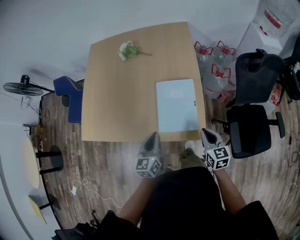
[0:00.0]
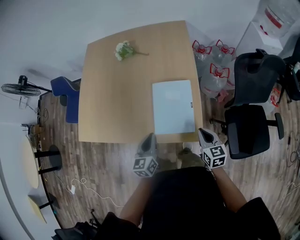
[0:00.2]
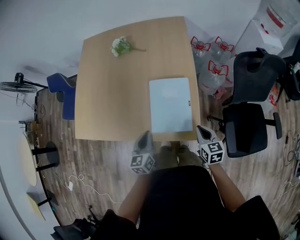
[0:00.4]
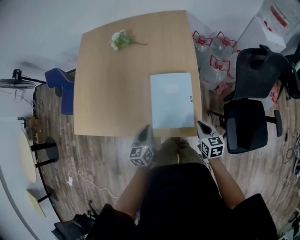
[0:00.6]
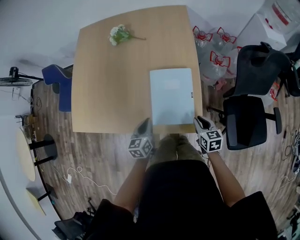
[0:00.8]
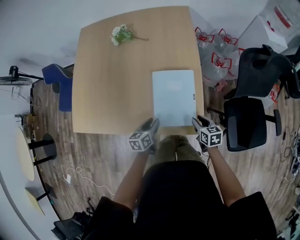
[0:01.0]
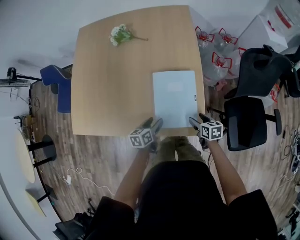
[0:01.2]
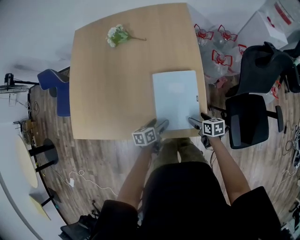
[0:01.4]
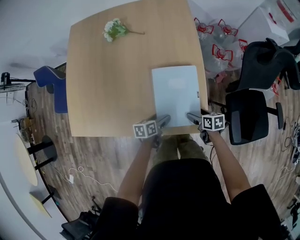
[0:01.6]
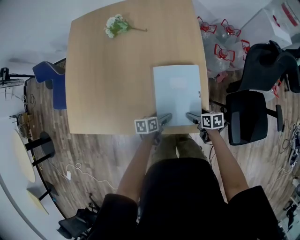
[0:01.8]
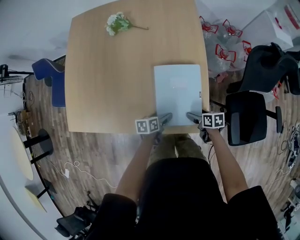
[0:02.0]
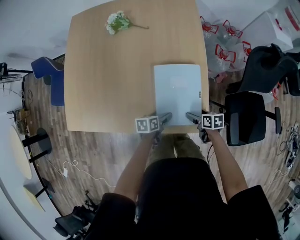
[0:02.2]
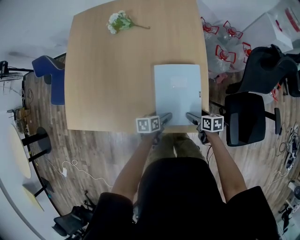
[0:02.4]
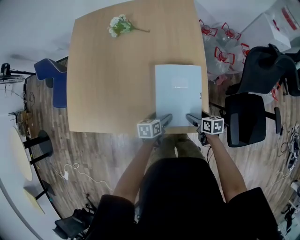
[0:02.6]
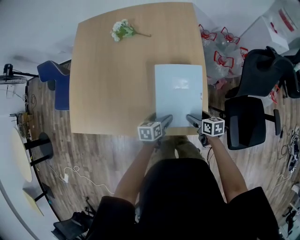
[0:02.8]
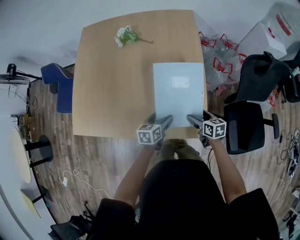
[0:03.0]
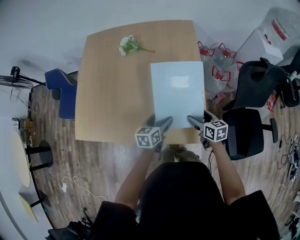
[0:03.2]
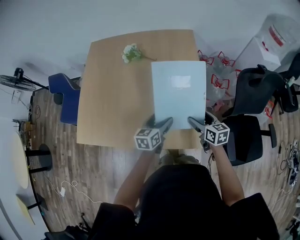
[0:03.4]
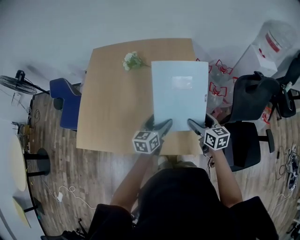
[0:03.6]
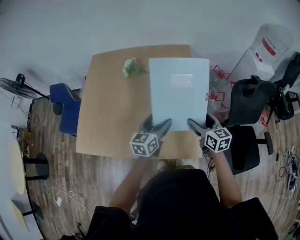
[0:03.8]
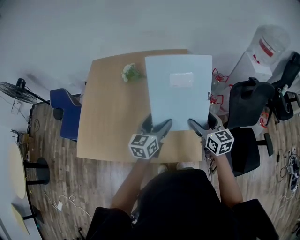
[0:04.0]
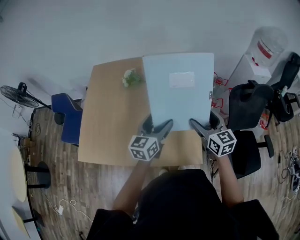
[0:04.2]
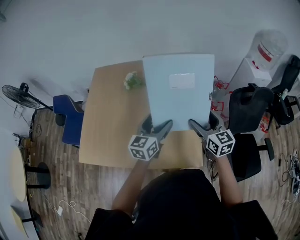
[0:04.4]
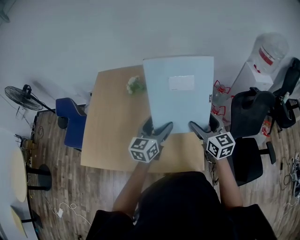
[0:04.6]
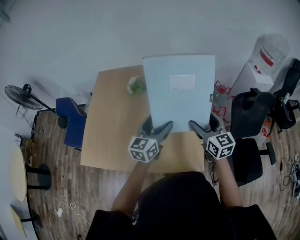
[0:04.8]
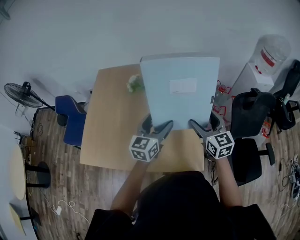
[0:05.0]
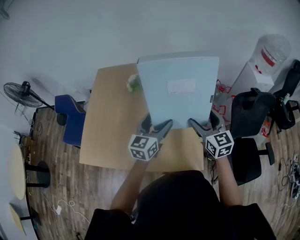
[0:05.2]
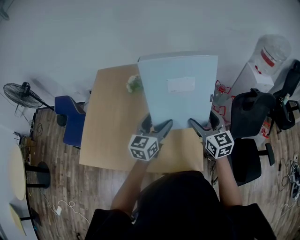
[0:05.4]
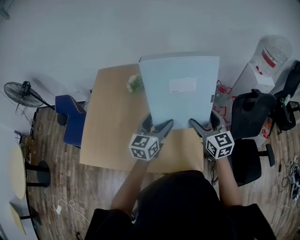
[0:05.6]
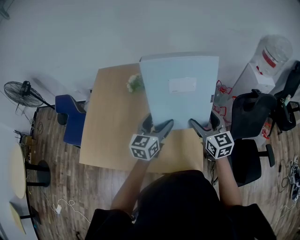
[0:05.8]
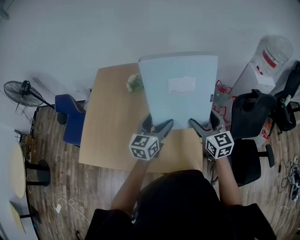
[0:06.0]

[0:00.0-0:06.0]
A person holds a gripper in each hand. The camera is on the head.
0.0 to 1.6 s: The right gripper goes roughly 20 cm downward and forward, swivels approximately 40 degrees, and opens. The left gripper moves downward, roughly 25 cm, turns by approximately 50 degrees, and opens its fingers.
1.6 to 3.0 s: The grippers both shift upward by some 10 cm.
3.0 to 4.4 s: Both grippers move upward, some 30 cm. The left gripper swivels approximately 40 degrees. The right gripper changes its angle by about 40 degrees.
4.4 to 6.0 s: The grippers make only small movements.

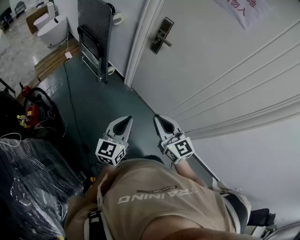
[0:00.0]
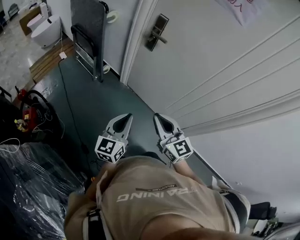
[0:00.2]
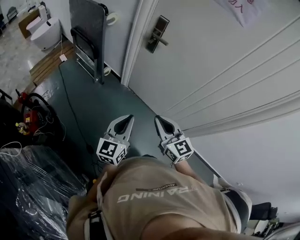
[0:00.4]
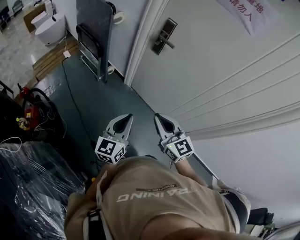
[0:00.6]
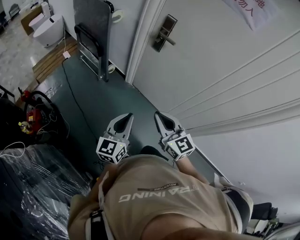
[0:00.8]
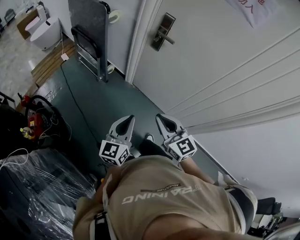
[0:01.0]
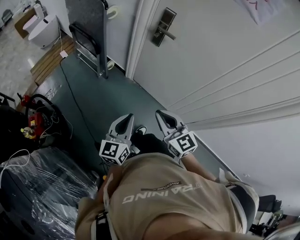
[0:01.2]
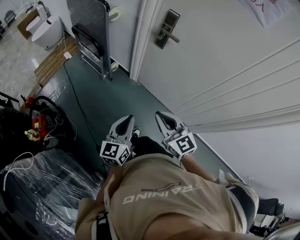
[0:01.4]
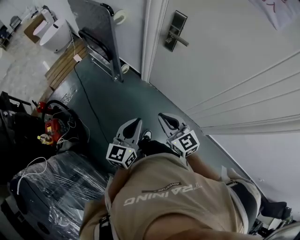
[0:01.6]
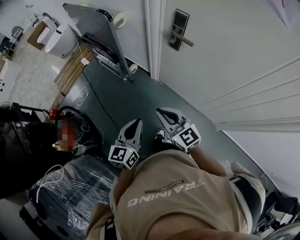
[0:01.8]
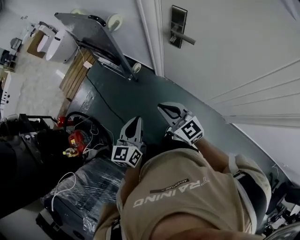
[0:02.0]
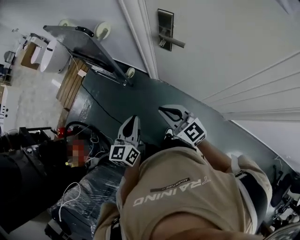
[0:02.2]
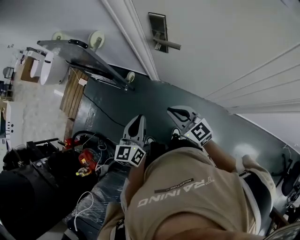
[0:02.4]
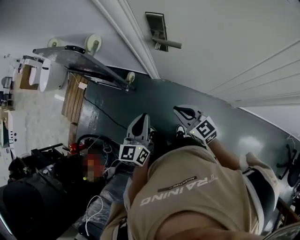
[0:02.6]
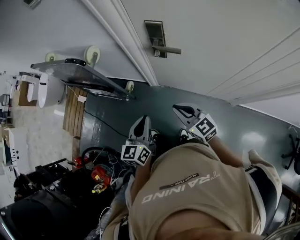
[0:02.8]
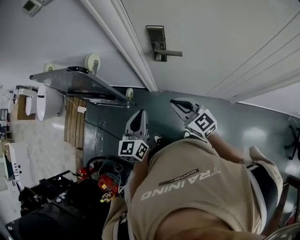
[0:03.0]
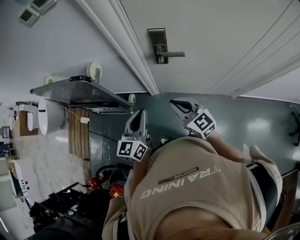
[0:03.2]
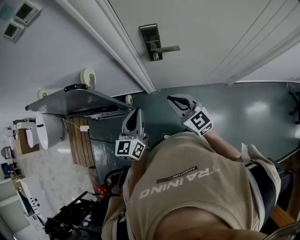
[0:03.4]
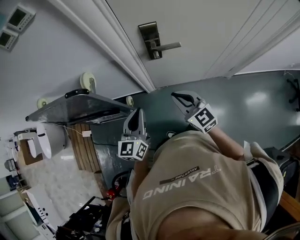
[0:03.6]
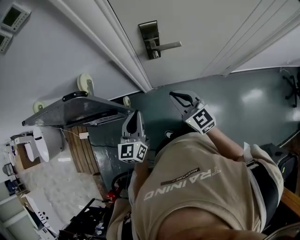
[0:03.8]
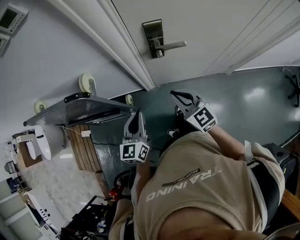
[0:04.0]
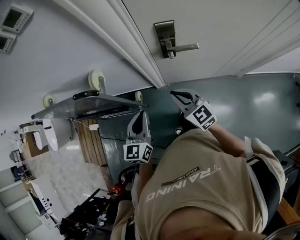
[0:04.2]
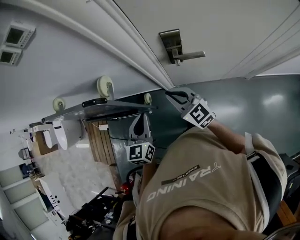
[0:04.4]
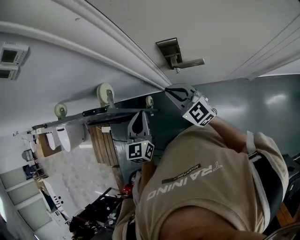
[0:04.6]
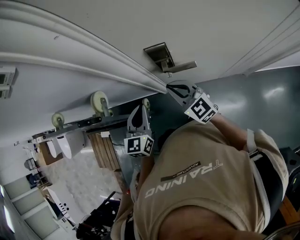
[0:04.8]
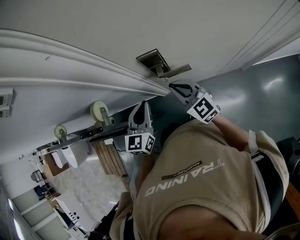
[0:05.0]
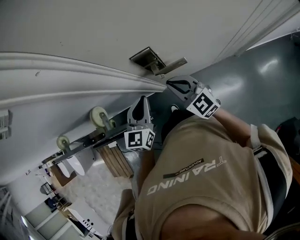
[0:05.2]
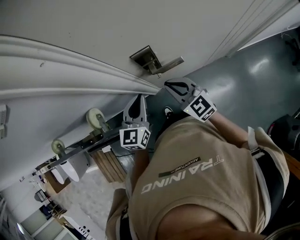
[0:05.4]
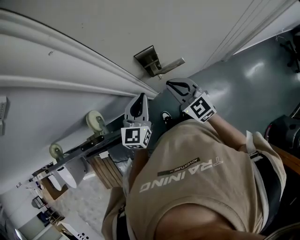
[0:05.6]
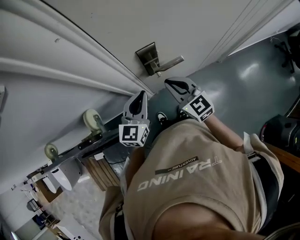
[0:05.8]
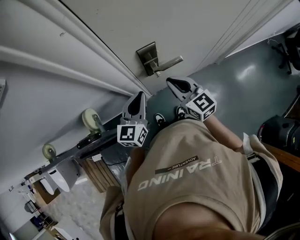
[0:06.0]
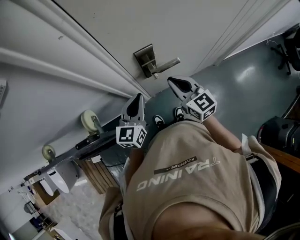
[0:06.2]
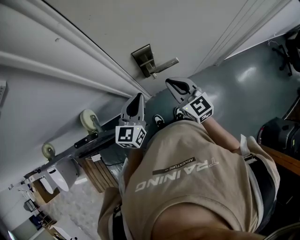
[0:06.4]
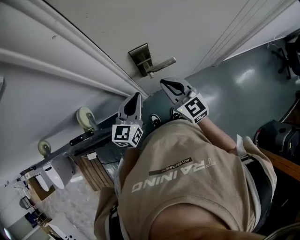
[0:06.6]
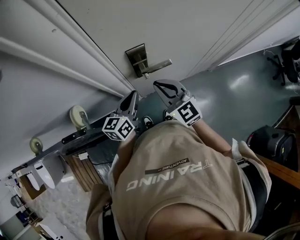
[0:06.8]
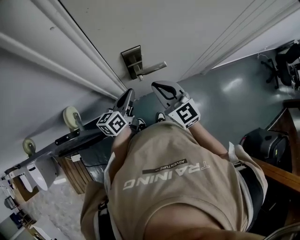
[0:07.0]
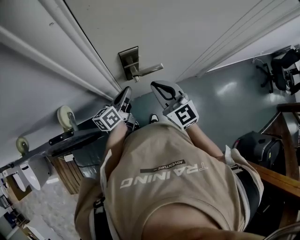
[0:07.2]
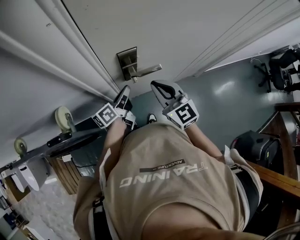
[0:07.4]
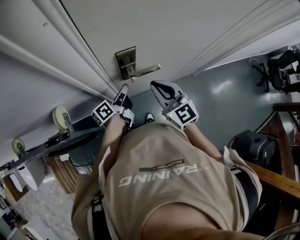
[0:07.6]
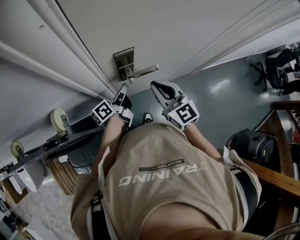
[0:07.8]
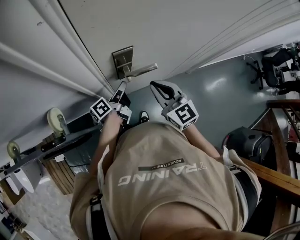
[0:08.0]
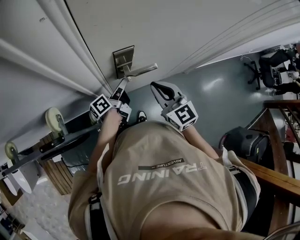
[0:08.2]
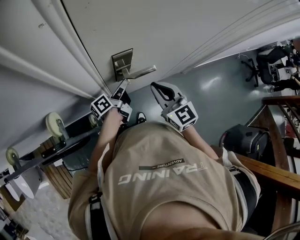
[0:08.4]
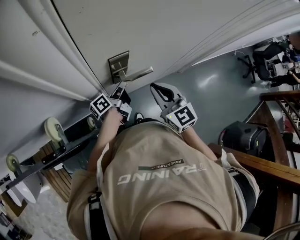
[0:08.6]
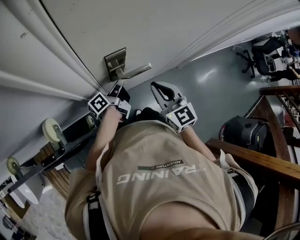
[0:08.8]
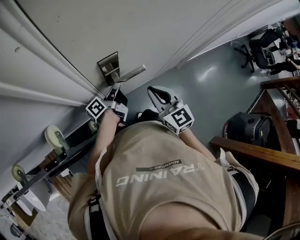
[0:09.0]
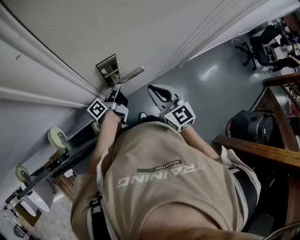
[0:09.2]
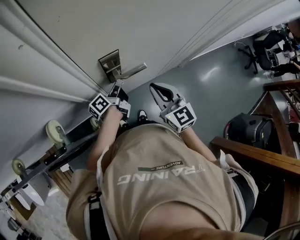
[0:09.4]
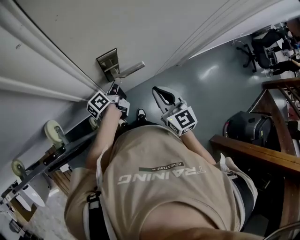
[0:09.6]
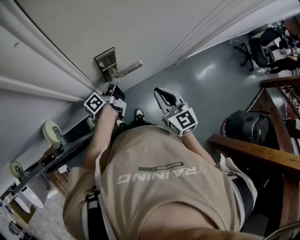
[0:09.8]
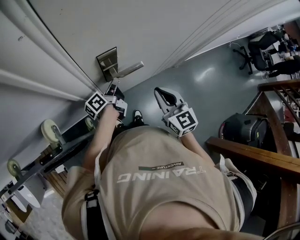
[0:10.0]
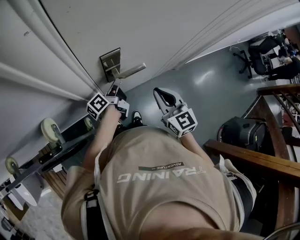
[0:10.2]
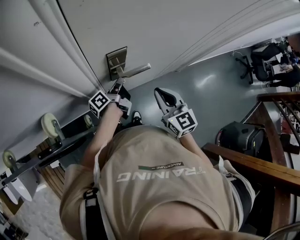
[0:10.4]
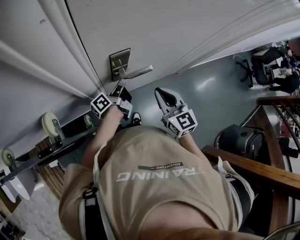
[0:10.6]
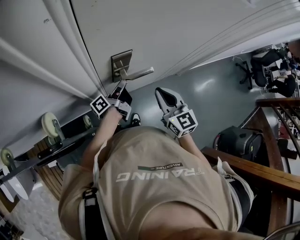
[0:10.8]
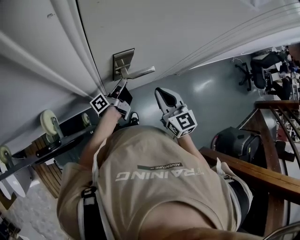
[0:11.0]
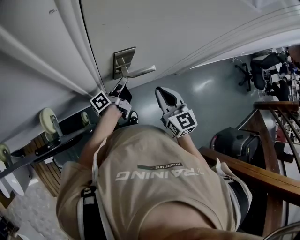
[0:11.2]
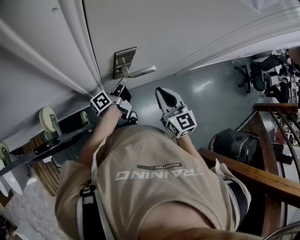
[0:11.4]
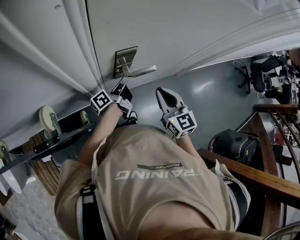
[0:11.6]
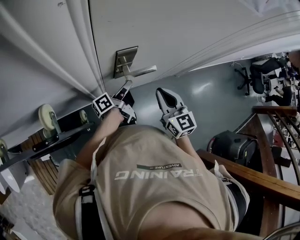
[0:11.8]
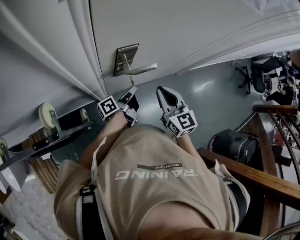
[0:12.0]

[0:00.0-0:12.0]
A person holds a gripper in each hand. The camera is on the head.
0.0 to 1.6 s: The left gripper is displaced forward and to the left by approximately 15 cm, while the right gripper heads forward, to the left and downward, covering about 15 cm.
1.6 to 3.0 s: Both grippers travel together forward, some 25 cm.
3.0 to 4.4 s: Both grippers travel together forward and to the left, some 15 cm.
4.4 to 6.0 s: The left gripper moves some 15 cm, and swivels approximately 30 degrees. Meanwhile the right gripper changes place by about 10 cm, and swivels about 30 degrees.
6.0 to 7.6 s: The left gripper moves downward and forward, approximately 10 cm, and rolls counterclockwise, seen from behind, by about 60 degrees.
7.6 to 9.0 s: The left gripper shifts by some 5 cm.
9.0 to 10.4 s: The grippers make only small movements.
10.4 to 12.0 s: The left gripper moves backward, roughly 5 cm.

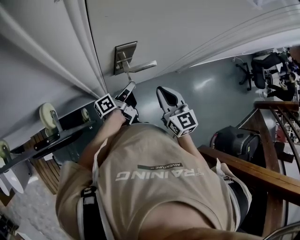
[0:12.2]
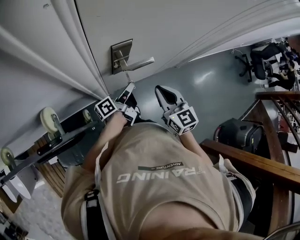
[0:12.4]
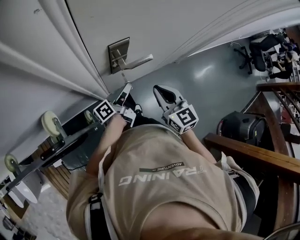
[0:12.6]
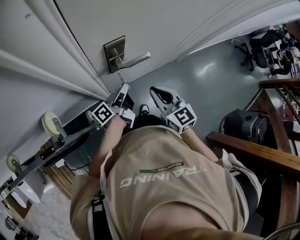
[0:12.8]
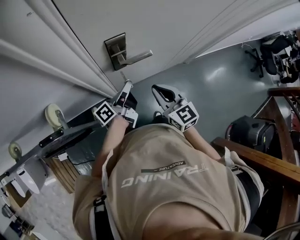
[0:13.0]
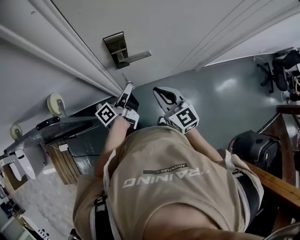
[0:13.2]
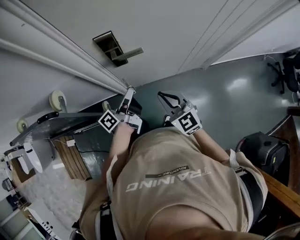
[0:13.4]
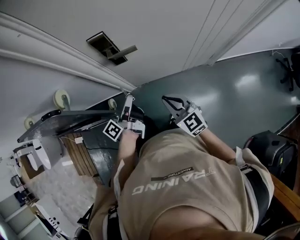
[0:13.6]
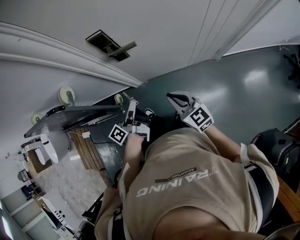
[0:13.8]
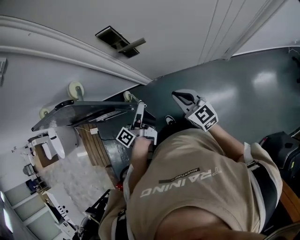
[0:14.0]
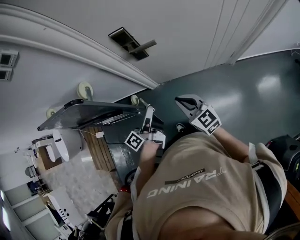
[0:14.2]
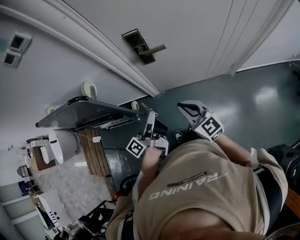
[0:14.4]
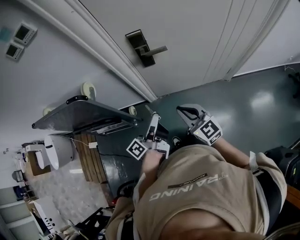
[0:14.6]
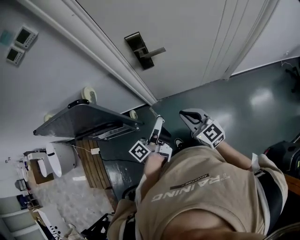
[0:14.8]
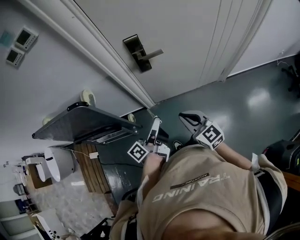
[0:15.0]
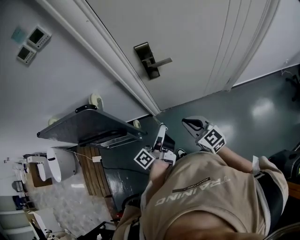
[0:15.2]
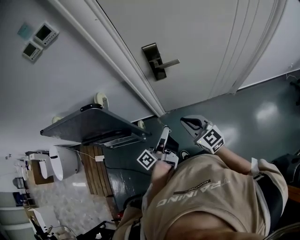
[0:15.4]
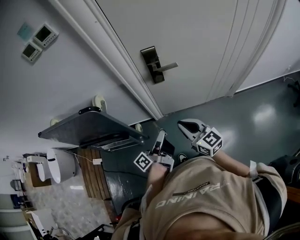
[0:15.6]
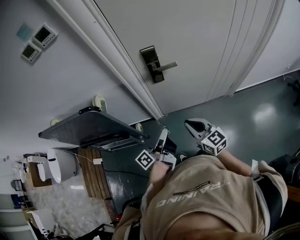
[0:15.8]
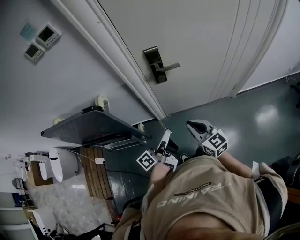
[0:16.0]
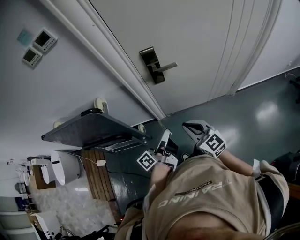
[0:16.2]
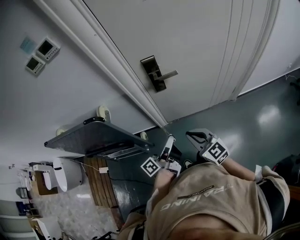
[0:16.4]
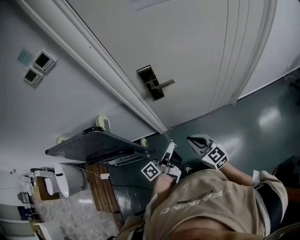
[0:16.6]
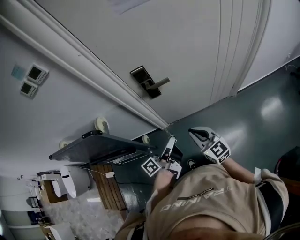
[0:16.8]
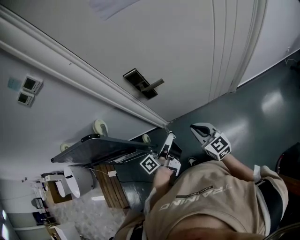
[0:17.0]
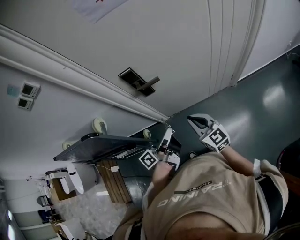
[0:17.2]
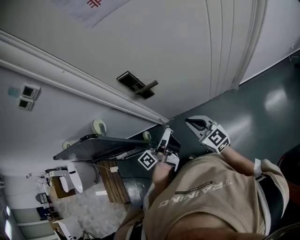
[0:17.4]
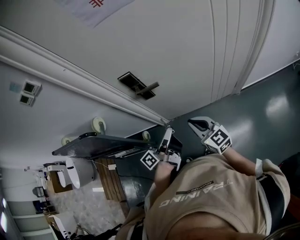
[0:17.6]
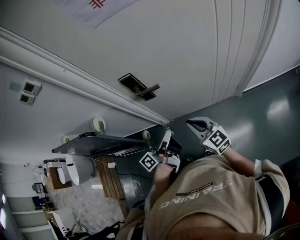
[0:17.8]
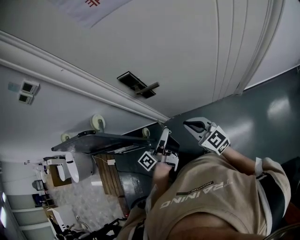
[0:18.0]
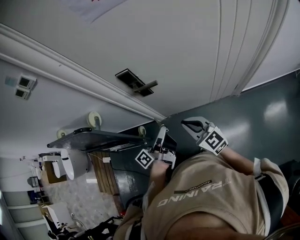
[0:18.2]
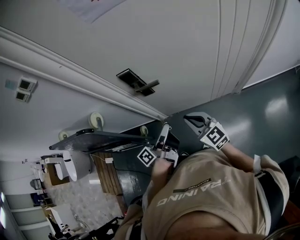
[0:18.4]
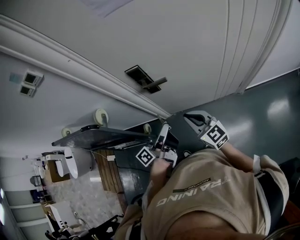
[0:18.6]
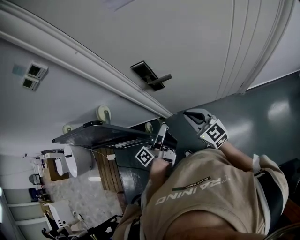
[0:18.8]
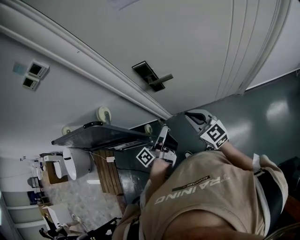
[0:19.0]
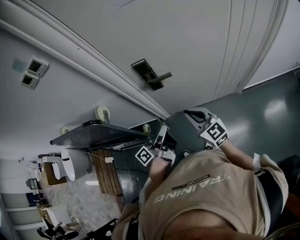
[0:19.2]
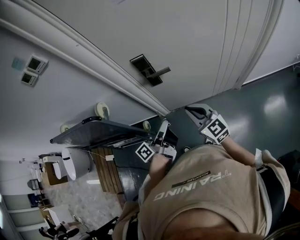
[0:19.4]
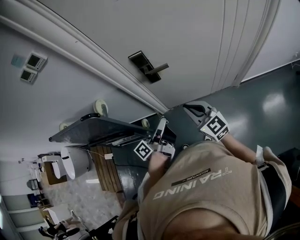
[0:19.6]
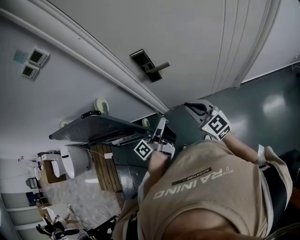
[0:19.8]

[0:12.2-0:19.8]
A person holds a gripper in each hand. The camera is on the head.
12.2 to 13.8 s: The right gripper ends up some 15 cm from where it was, and changes its angle by some 30 degrees. The left gripper ends up about 20 cm from where it was, and rotates about 30 degrees.
13.8 to 15.2 s: The left gripper moves backward, to the left and upward, roughly 10 cm; the right gripper moves to the left and backward, roughly 15 cm.
15.2 to 16.8 s: The left gripper is displaced to the right by about 5 cm. Meanwhile the right gripper changes place by roughly 5 cm.
16.8 to 18.2 s: Both grippers travel together to the right and forward, about 10 cm.
18.2 to 19.8 s: Both grippers move to the left, approximately 5 cm.
